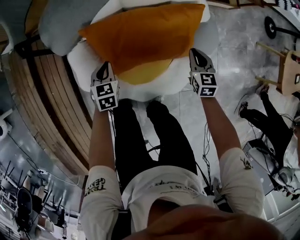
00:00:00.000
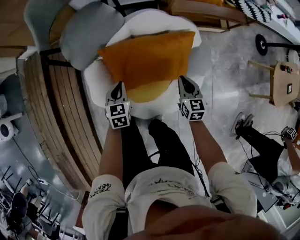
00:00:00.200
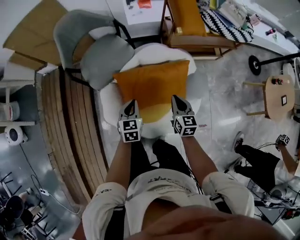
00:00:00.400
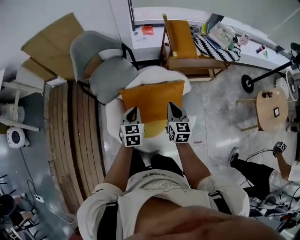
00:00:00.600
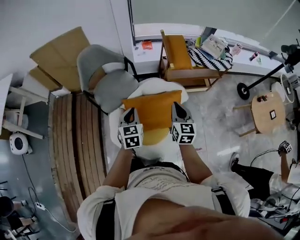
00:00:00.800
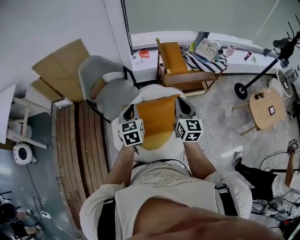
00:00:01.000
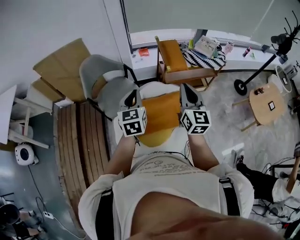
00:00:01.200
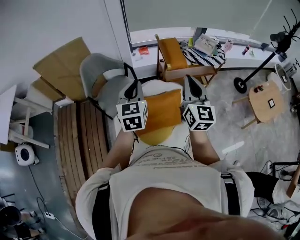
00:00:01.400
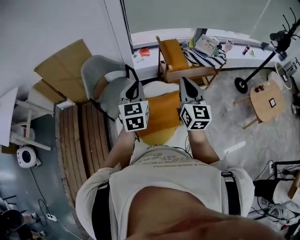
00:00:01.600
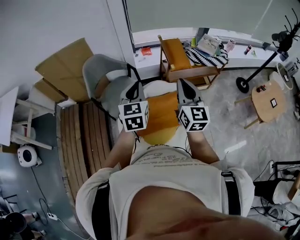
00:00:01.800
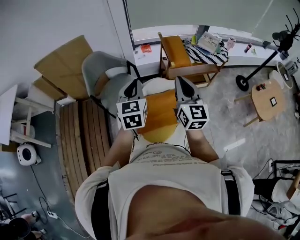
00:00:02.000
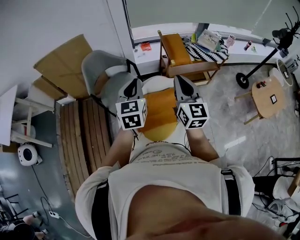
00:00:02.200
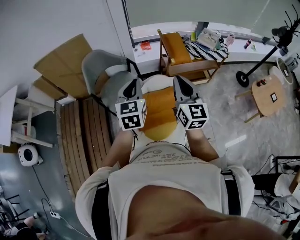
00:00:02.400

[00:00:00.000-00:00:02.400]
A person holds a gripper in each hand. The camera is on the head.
00:00:00.000 to 00:00:01.200: The grippers both shift upward by roughly 60 cm. The right gripper points its fingers approximately 40 degrees further upward. The left gripper angles its fingers upward, by some 30 degrees.
00:00:01.200 to 00:00:02.400: The right gripper heads to the left, covering some 5 cm.

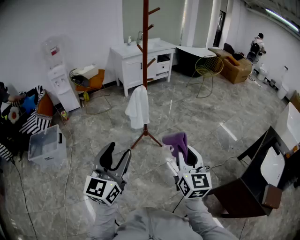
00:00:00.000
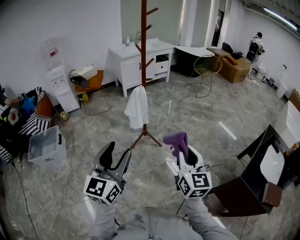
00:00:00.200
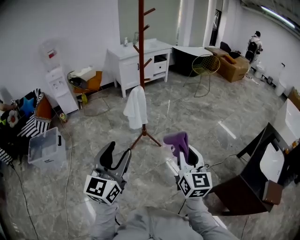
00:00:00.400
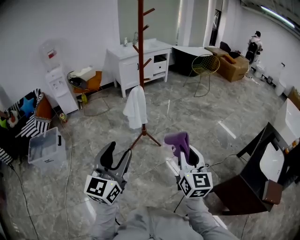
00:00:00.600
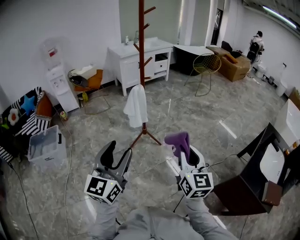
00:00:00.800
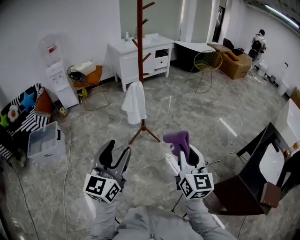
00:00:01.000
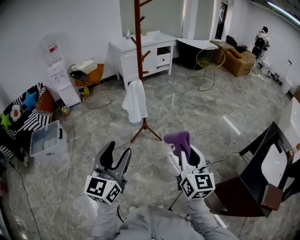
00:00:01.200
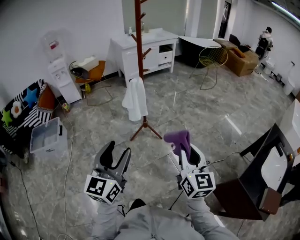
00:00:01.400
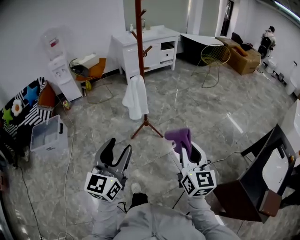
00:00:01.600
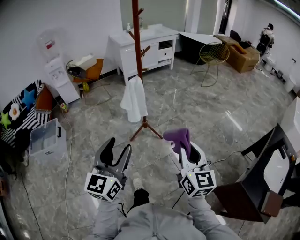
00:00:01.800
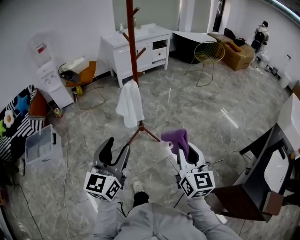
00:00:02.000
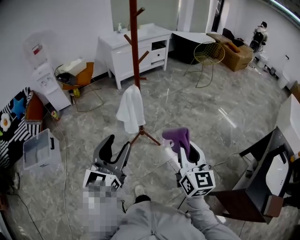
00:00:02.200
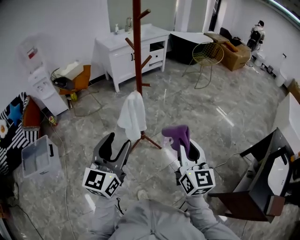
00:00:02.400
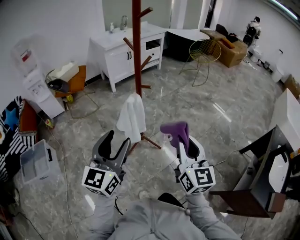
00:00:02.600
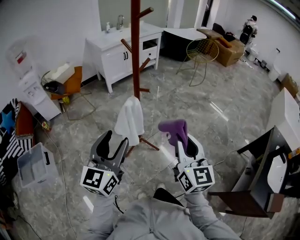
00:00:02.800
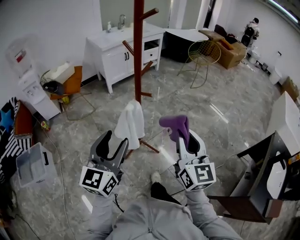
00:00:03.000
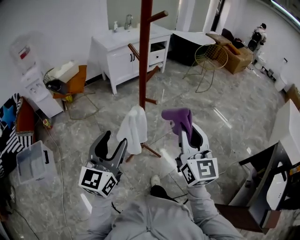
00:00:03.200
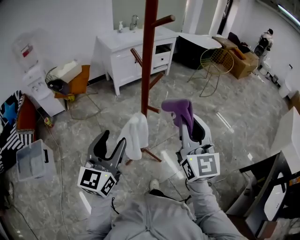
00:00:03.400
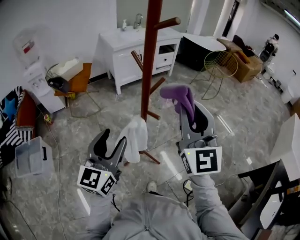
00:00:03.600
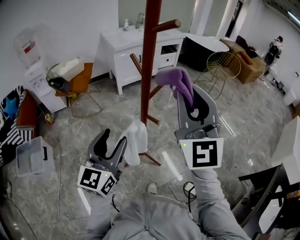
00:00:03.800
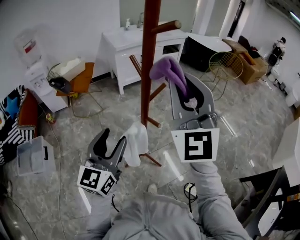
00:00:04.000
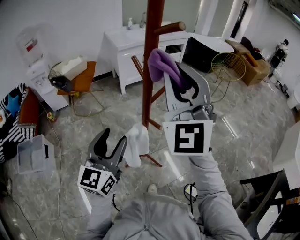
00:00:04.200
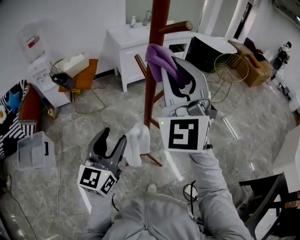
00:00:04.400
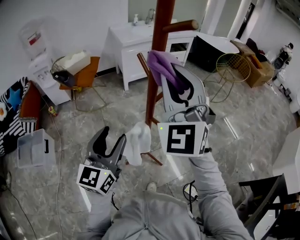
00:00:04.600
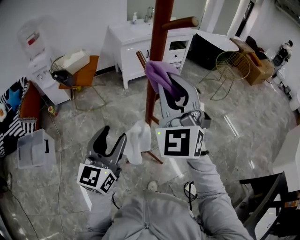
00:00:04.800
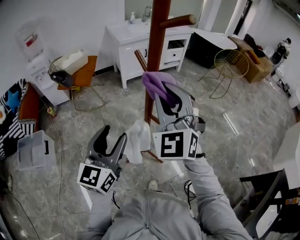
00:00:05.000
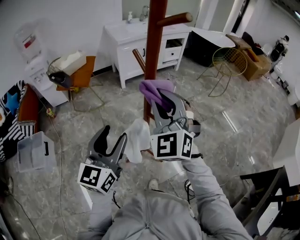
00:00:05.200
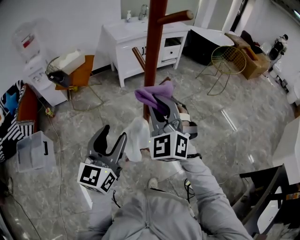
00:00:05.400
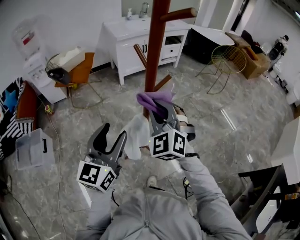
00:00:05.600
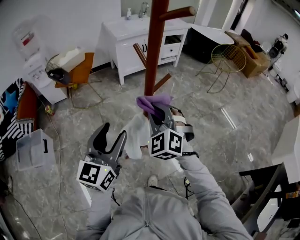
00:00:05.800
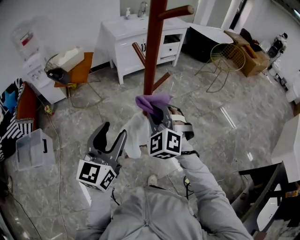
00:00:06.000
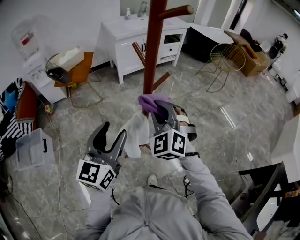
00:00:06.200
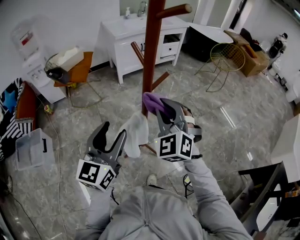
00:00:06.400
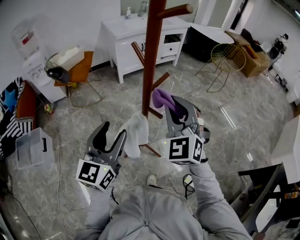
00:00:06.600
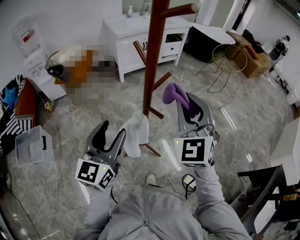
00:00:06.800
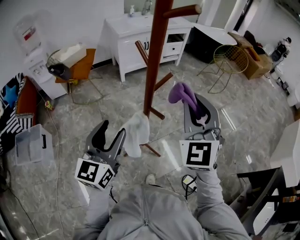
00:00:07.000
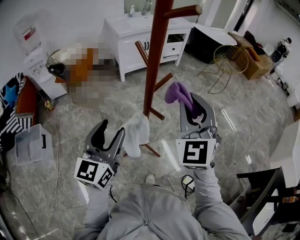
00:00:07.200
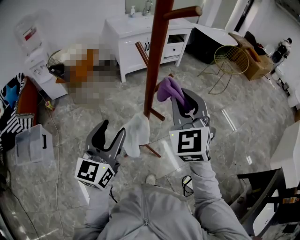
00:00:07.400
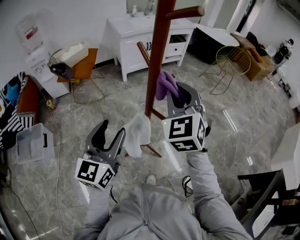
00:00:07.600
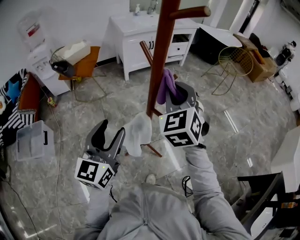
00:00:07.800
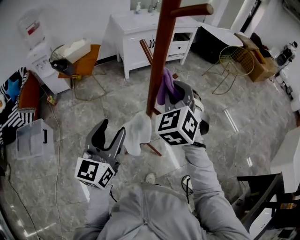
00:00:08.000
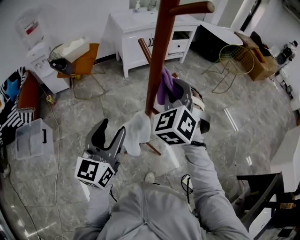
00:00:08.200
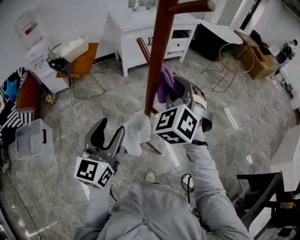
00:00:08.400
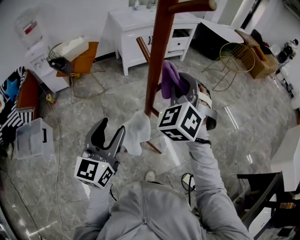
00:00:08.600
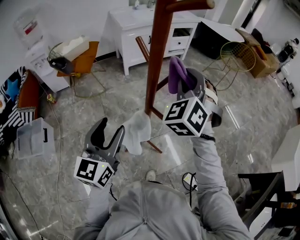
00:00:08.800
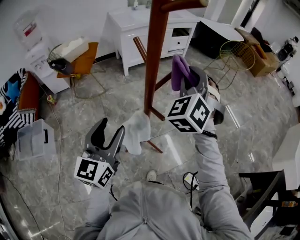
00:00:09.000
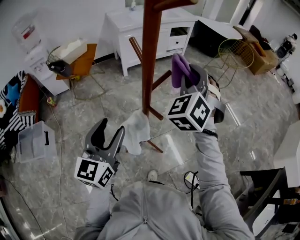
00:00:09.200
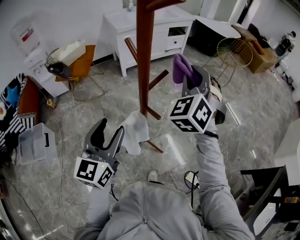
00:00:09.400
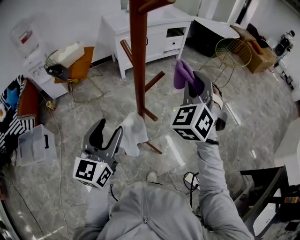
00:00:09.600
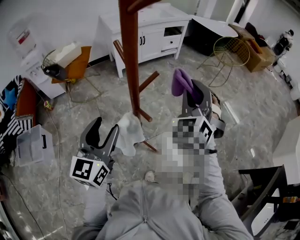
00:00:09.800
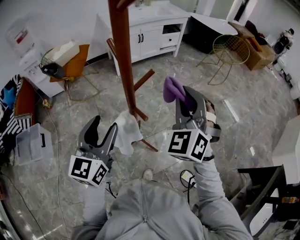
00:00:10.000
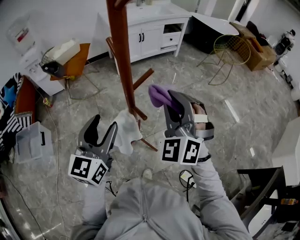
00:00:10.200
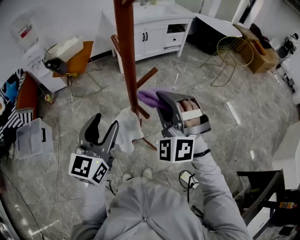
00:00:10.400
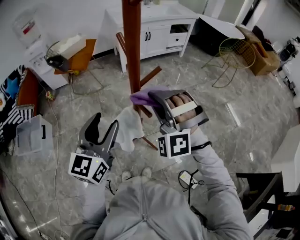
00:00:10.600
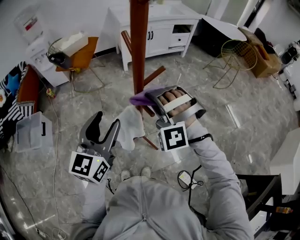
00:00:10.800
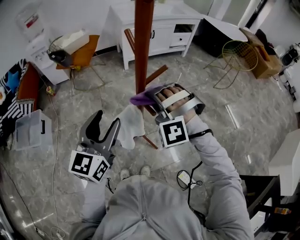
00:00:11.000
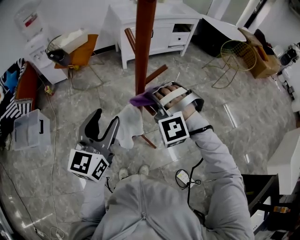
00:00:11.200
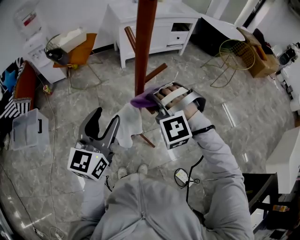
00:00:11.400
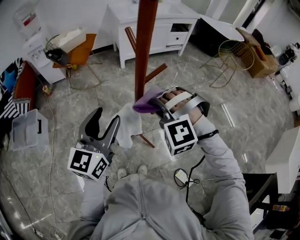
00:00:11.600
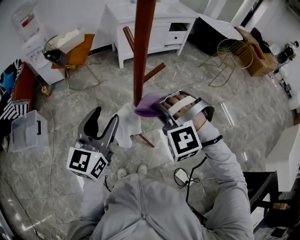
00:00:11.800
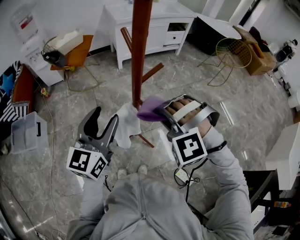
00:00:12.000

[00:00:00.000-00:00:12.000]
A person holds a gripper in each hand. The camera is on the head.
00:00:00.000 to 00:00:01.600: Both grippers travel together to the right, some 5 cm.
00:00:01.600 to 00:00:03.000: The left gripper travels forward by about 30 cm. Meanwhile the right gripper heads forward and to the left, covering about 30 cm.
00:00:03.000 to 00:00:04.400: The right gripper is displaced forward, upward and to the left by approximately 35 cm, and rolls counterclockwise, seen from behind, by roughly 40 degrees; the left gripper goes some 15 cm forward.
00:00:04.400 to 00:00:06.000: The right gripper travels downward by approximately 25 cm, and tips its fingers downward by approximately 30 degrees.
00:00:06.000 to 00:00:07.600: The right gripper shifts about 10 cm upward and to the right, and turns by some 20 degrees.
00:00:07.600 to 00:00:09.000: The right gripper goes about 5 cm forward, and rotates about 20 degrees.
00:00:09.000 to 00:00:10.400: The right gripper moves backward and downward, roughly 10 cm, and swivels approximately 30 degrees.
00:00:10.400 to 00:00:12.000: The right gripper goes roughly 10 cm backward and downward, and points its fingers about 30 degrees further downward.

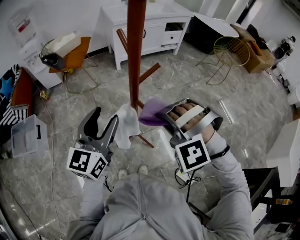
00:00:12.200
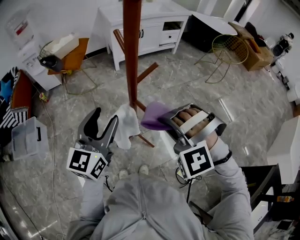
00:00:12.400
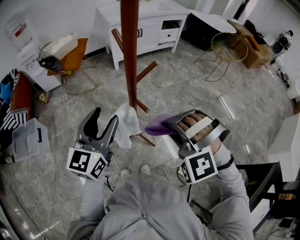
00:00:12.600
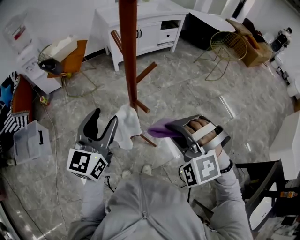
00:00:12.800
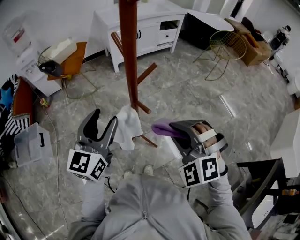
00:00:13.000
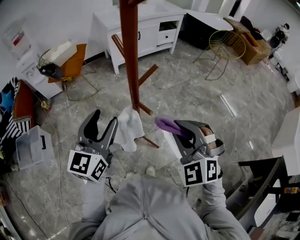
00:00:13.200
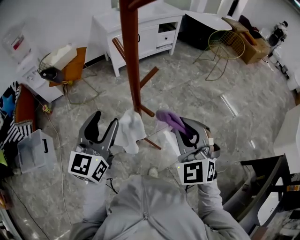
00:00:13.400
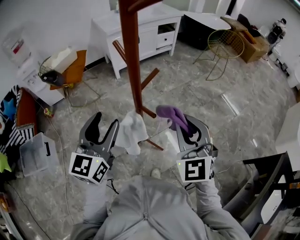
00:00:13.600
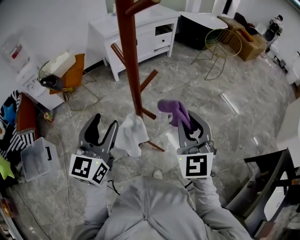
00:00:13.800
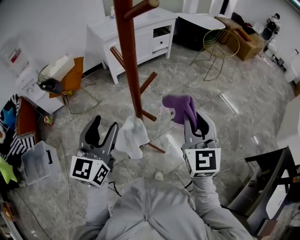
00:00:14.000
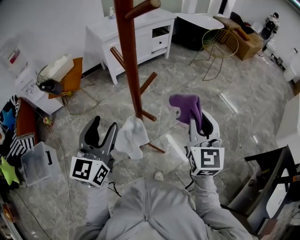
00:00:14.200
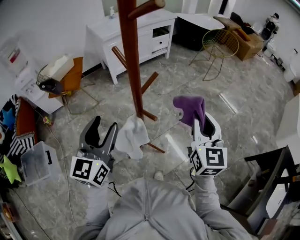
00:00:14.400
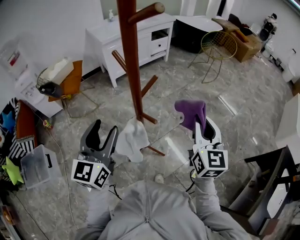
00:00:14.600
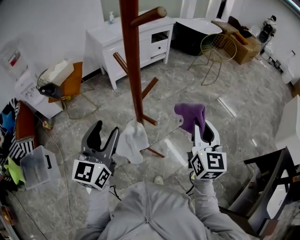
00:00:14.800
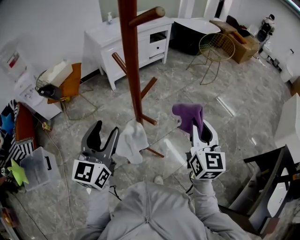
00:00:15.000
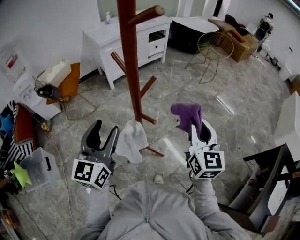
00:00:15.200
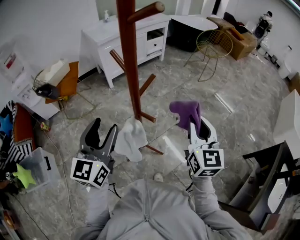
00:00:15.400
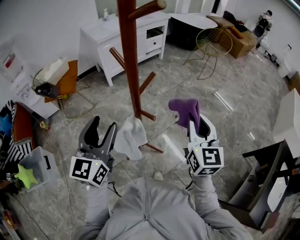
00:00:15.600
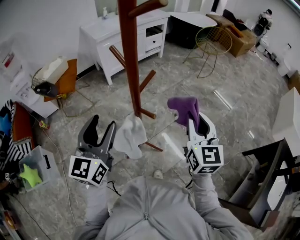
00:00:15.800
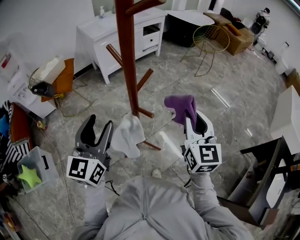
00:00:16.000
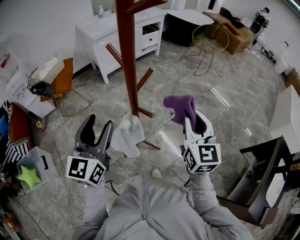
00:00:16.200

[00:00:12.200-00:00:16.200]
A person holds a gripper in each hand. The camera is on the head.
00:00:12.200 to 00:00:13.600: The right gripper shifts by about 5 cm, and rolls clockwise, seen from behind, by roughly 60 degrees.
00:00:13.600 to 00:00:14.800: The right gripper heads to the right, covering roughly 10 cm, and swivels roughly 40 degrees.
00:00:14.800 to 00:00:16.200: The grippers stay close to where they were, moving slightly.

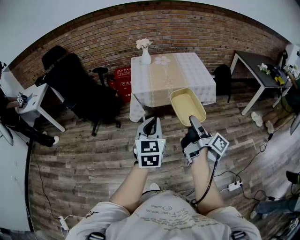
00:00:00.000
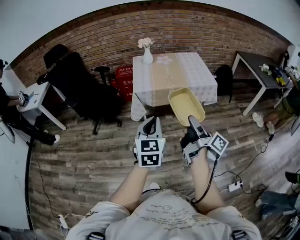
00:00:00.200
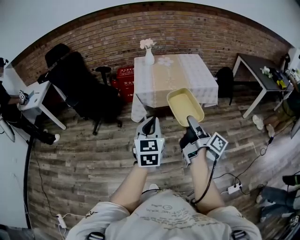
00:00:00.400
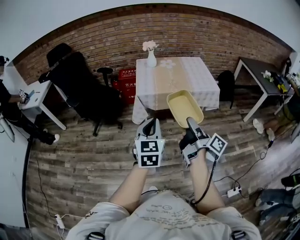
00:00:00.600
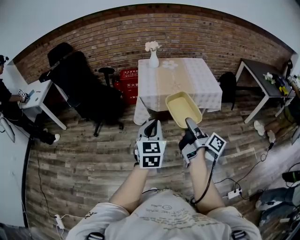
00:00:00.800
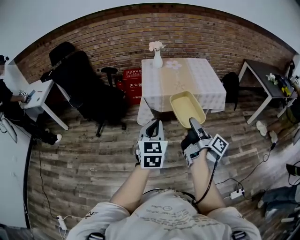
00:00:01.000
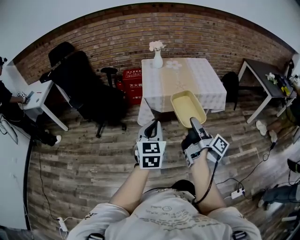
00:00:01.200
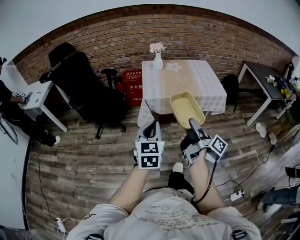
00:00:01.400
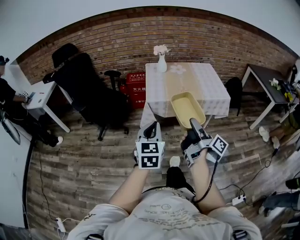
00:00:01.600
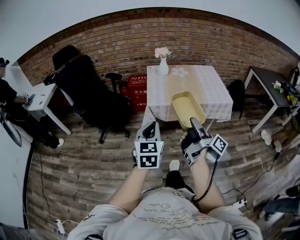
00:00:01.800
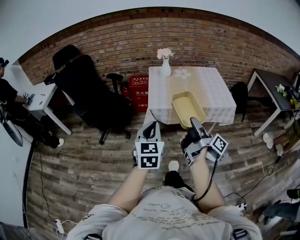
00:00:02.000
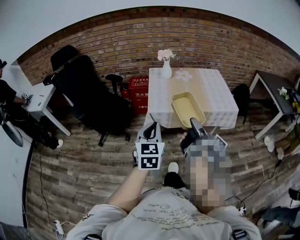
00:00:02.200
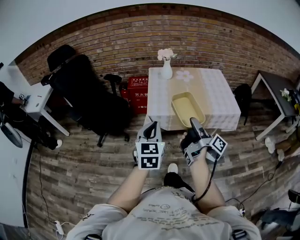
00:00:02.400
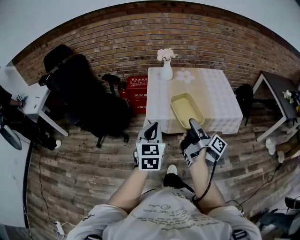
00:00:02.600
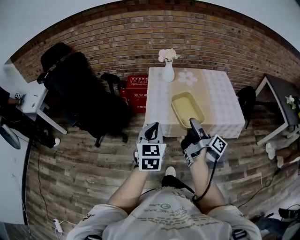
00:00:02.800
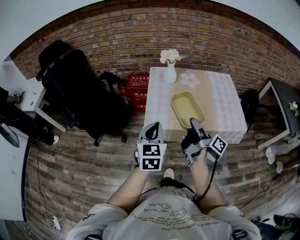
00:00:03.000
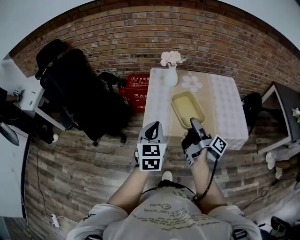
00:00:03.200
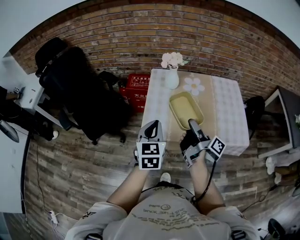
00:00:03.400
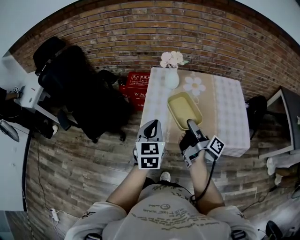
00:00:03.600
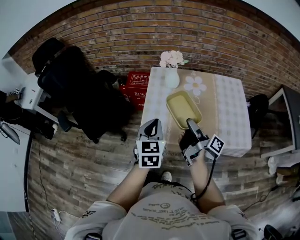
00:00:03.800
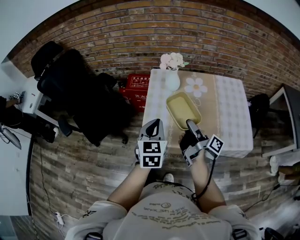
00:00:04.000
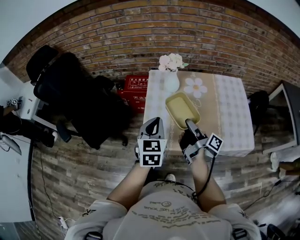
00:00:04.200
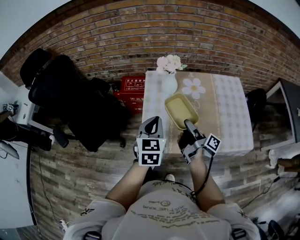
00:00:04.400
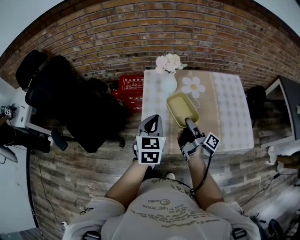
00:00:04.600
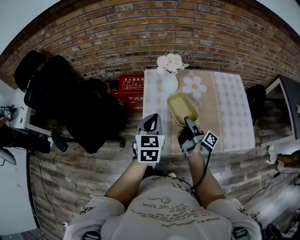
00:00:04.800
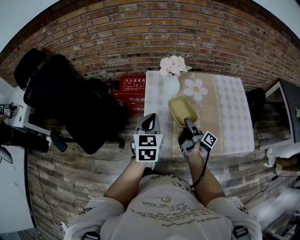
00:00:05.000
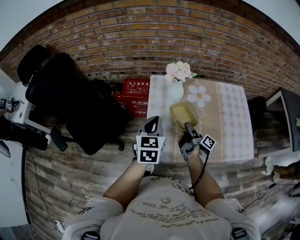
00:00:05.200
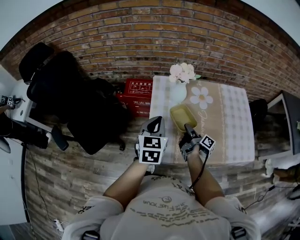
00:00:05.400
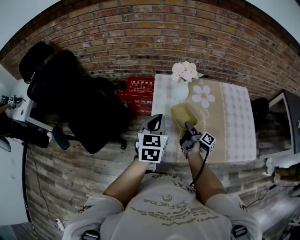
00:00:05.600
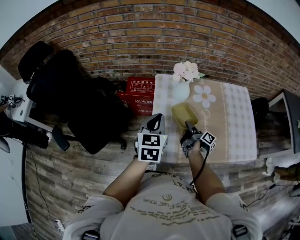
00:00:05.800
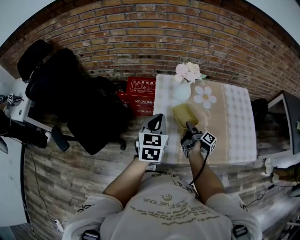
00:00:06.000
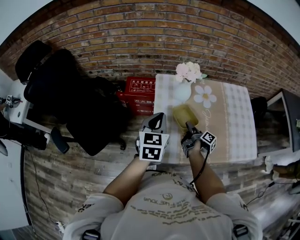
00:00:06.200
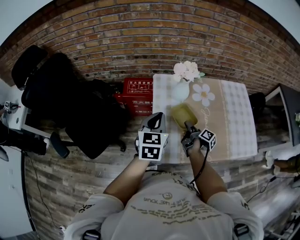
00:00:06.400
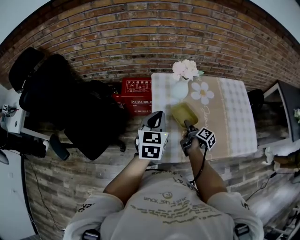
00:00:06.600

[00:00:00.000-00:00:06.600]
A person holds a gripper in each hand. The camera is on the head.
00:00:00.000 to 00:00:01.600: The left gripper shifts by approximately 10 cm.
00:00:01.600 to 00:00:03.200: The left gripper ends up approximately 40 cm from where it was.
00:00:03.200 to 00:00:05.000: The left gripper ends up roughly 25 cm from where it was.
00:00:05.000 to 00:00:06.600: The left gripper moves roughly 5 cm.
